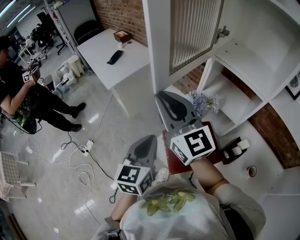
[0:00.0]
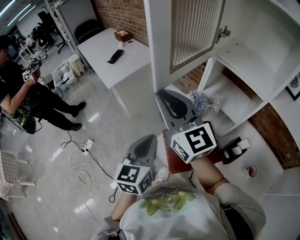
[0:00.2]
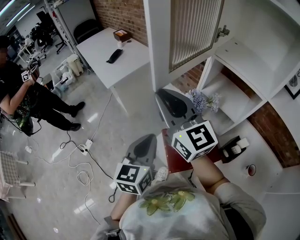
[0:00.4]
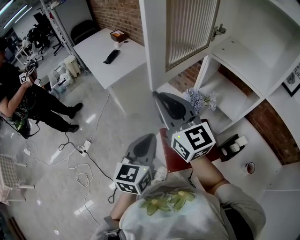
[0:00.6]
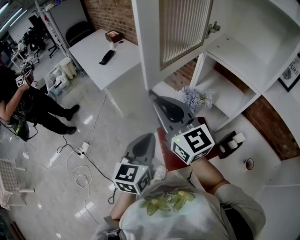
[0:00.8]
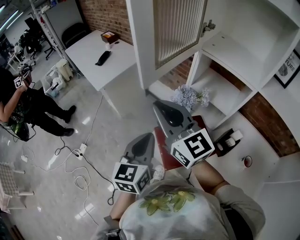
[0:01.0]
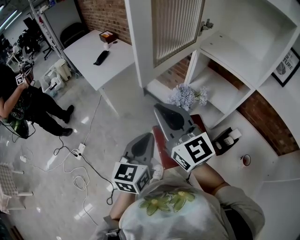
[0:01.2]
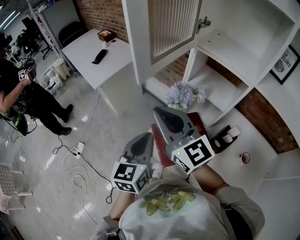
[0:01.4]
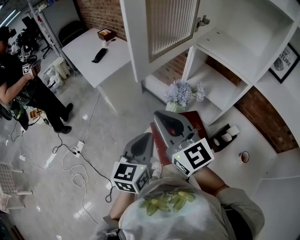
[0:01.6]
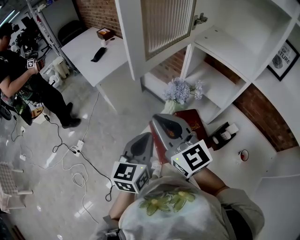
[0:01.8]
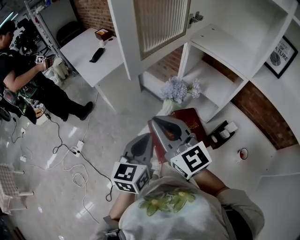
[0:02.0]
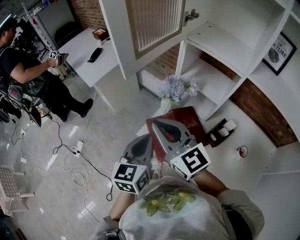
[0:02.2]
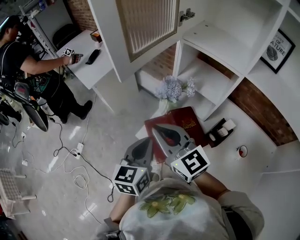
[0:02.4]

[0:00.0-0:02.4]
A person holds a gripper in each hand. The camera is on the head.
0:00.0 to 0:01.2: The right gripper changes place by approximately 5 cm.
0:01.2 to 0:02.4: The left gripper ends up roughly 5 cm from where it was. The right gripper is displaced downward and backward by about 10 cm.

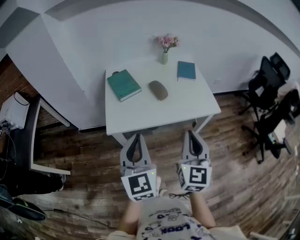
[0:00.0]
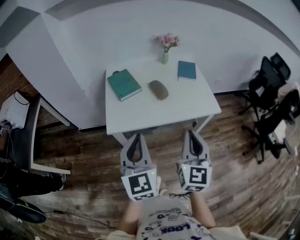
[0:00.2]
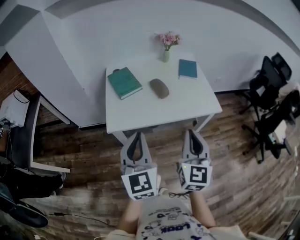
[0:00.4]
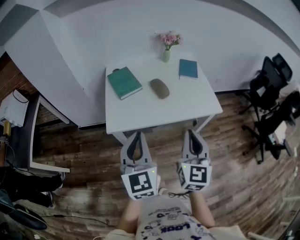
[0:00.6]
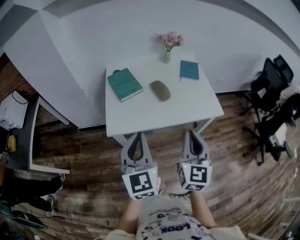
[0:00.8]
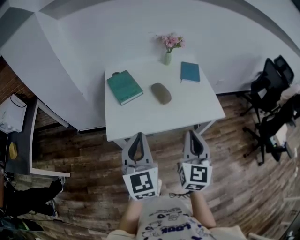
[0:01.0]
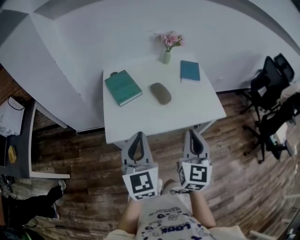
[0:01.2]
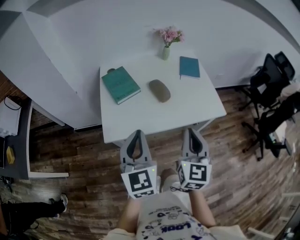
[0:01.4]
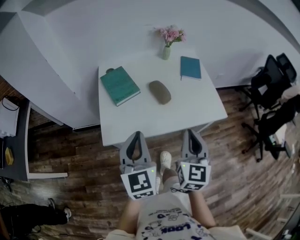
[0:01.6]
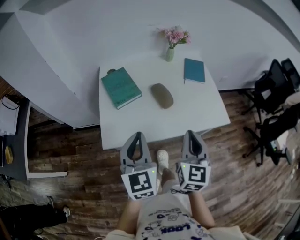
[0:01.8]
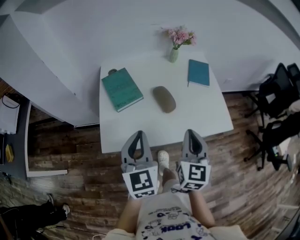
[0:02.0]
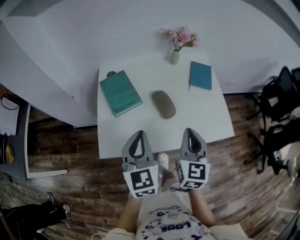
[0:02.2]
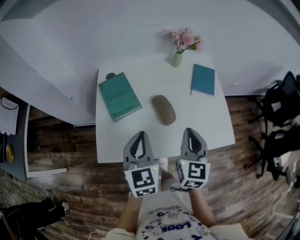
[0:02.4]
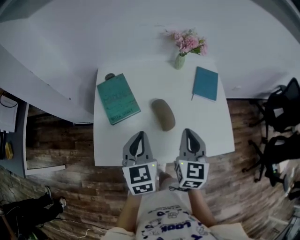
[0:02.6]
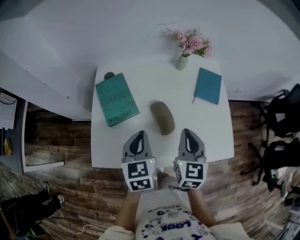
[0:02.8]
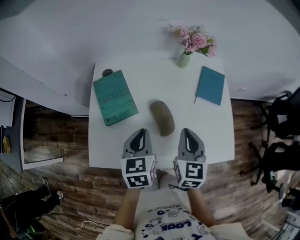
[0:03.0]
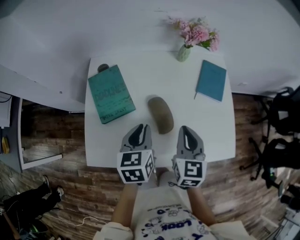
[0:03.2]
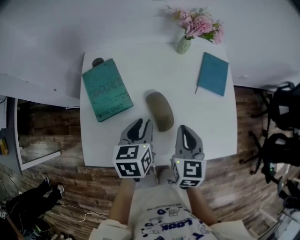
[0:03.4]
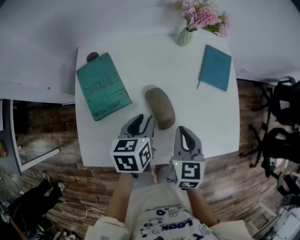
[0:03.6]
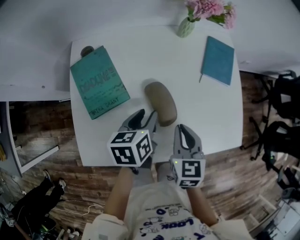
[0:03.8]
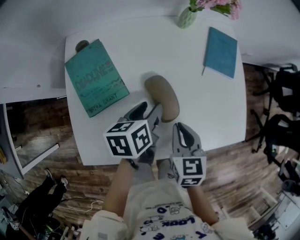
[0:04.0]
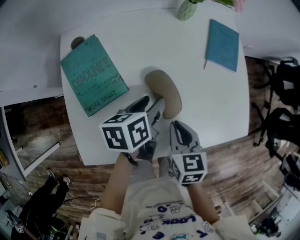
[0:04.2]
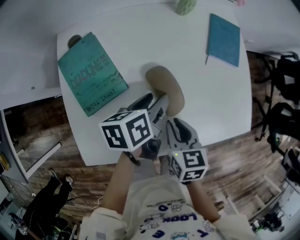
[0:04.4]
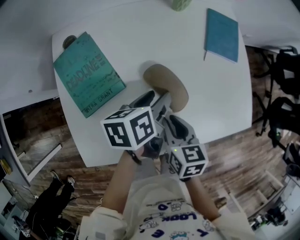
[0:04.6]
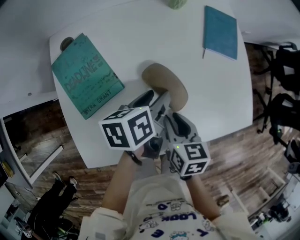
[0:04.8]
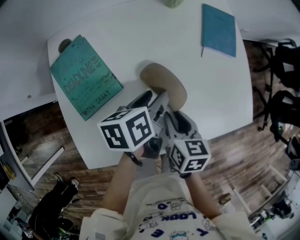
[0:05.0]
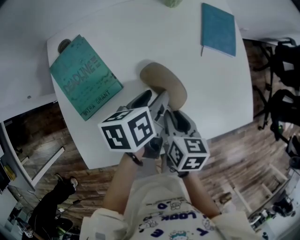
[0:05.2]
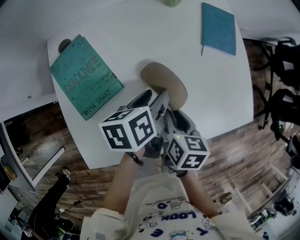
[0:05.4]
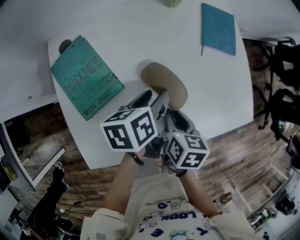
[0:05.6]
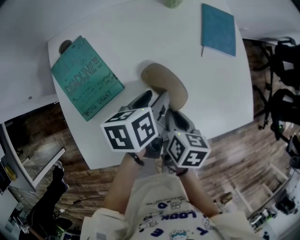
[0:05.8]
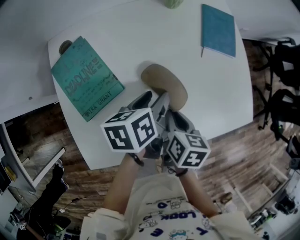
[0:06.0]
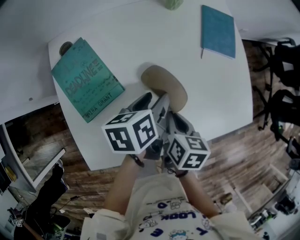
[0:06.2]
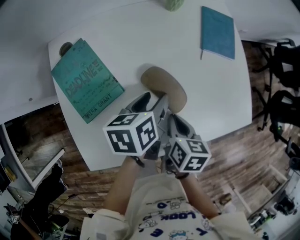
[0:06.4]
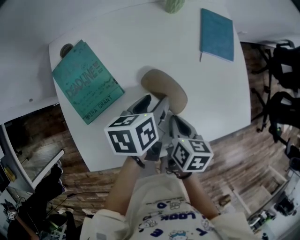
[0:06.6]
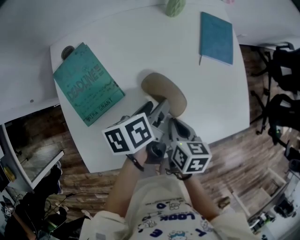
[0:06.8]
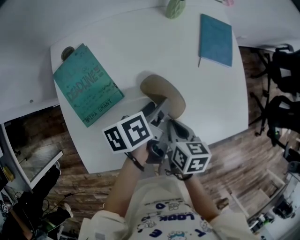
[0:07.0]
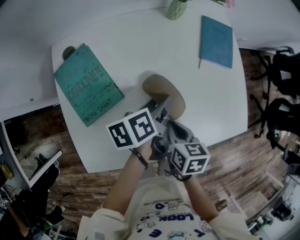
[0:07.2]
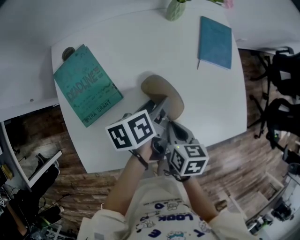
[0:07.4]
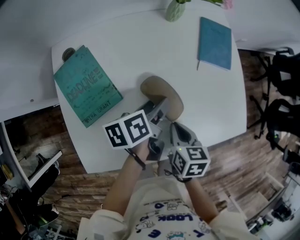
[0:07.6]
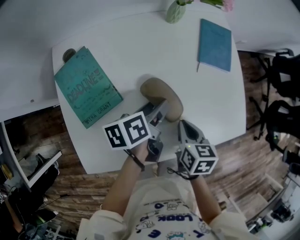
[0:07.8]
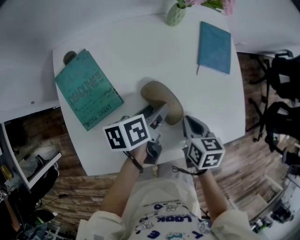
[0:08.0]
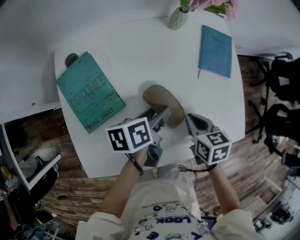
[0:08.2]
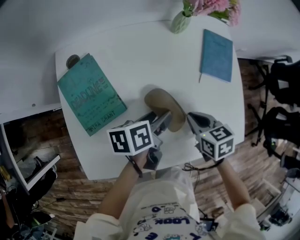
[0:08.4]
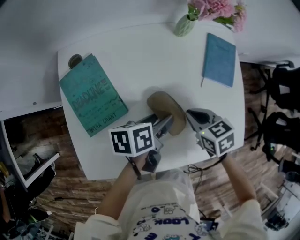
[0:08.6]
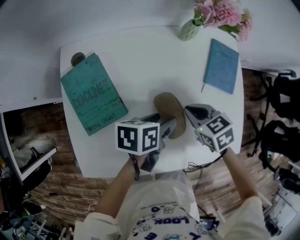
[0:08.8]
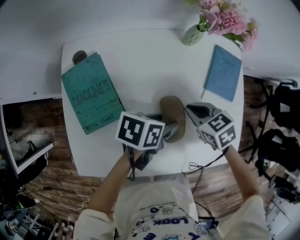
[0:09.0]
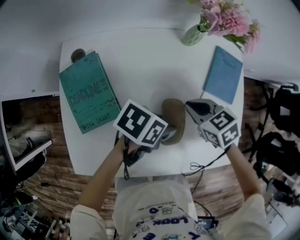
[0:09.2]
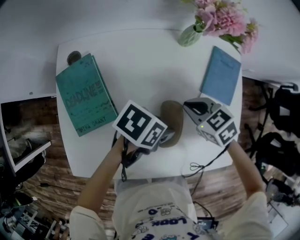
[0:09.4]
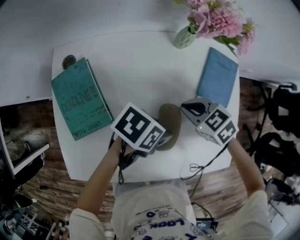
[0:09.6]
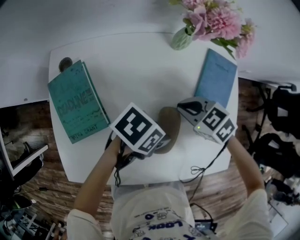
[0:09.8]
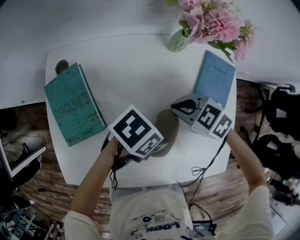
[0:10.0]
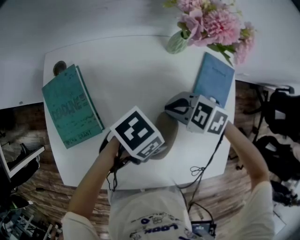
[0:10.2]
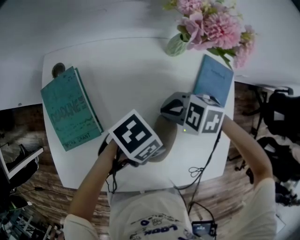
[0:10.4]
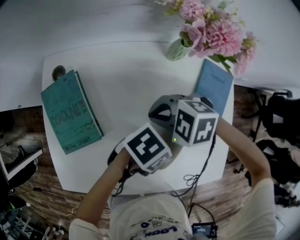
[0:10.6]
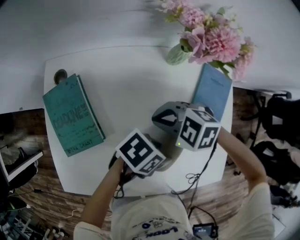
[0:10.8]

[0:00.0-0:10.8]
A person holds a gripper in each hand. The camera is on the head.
0:00.0 to 0:01.6: The grippers both shift forward by about 10 cm.
0:01.6 to 0:03.0: The right gripper shifts some 25 cm forward. Meanwhile the left gripper is displaced forward and downward by approximately 25 cm, and swivels approximately 30 degrees.
0:03.0 to 0:04.6: The right gripper shifts approximately 15 cm downward, and changes its angle by approximately 30 degrees, while the left gripper heads downward, forward and to the right, covering about 15 cm, changes its angle by about 50 degrees, and opens.
0:06.2 to 0:07.8: The right gripper is displaced to the right by approximately 5 cm.
0:07.8 to 0:09.2: The left gripper changes its angle by about 40 degrees. Meanwhile the right gripper shifts by about 15 cm, and rotates around the line of its fingers by some 40 degrees, counterclockwise from behind.
0:09.2 to 0:10.8: The right gripper shifts by some 5 cm, and swivels roughly 40 degrees. Meanwhile the left gripper changes place by about 5 cm.

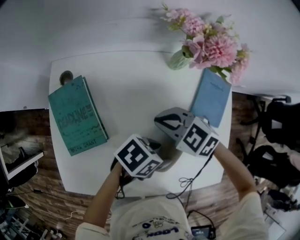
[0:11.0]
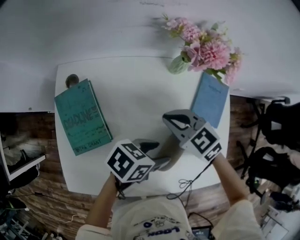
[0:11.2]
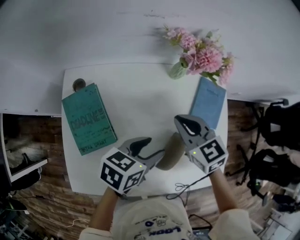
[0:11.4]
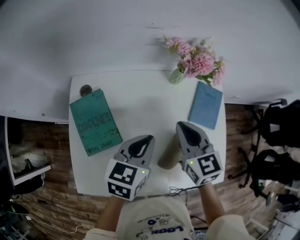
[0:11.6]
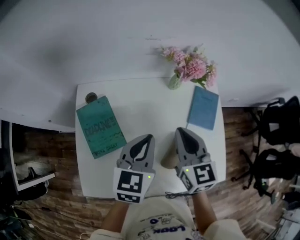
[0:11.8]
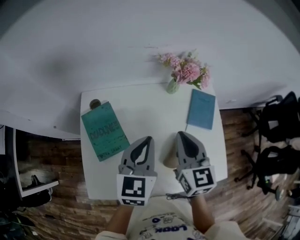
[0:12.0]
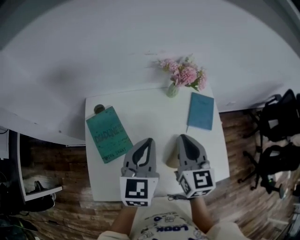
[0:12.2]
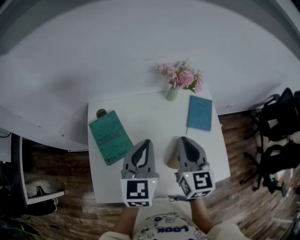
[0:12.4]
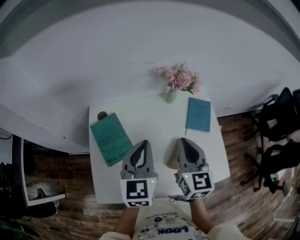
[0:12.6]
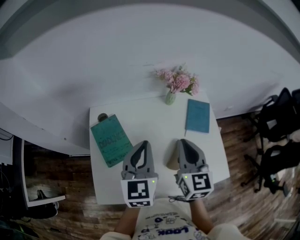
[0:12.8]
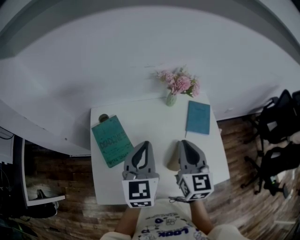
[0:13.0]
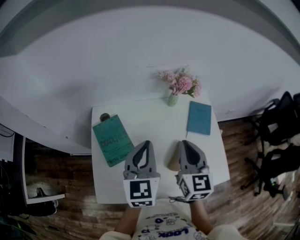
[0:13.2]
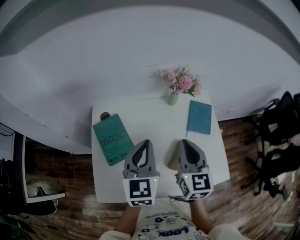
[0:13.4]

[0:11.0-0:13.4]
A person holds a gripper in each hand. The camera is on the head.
0:11.0 to 0:12.2: The grippers both shift upward by approximately 20 cm. The right gripper points its fingers some 30 degrees further upward. The left gripper turns by some 80 degrees, and closes.
0:12.2 to 0:13.4: The grippers move only a little.

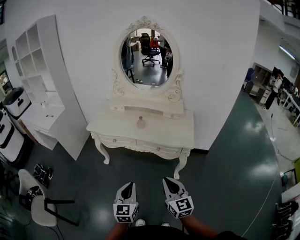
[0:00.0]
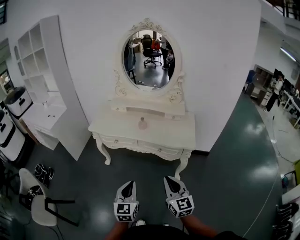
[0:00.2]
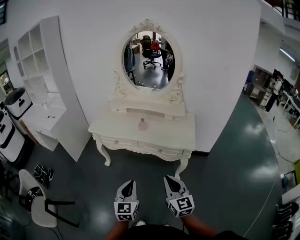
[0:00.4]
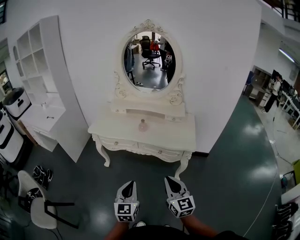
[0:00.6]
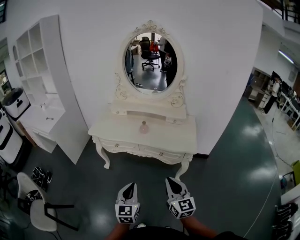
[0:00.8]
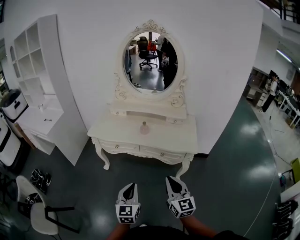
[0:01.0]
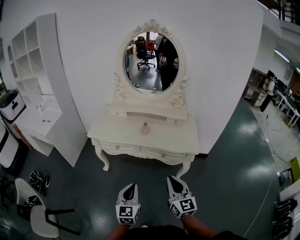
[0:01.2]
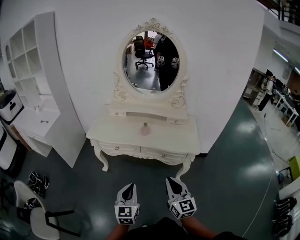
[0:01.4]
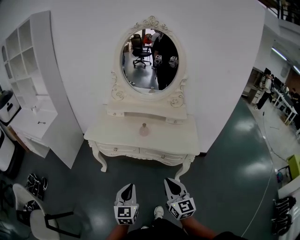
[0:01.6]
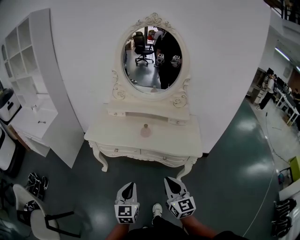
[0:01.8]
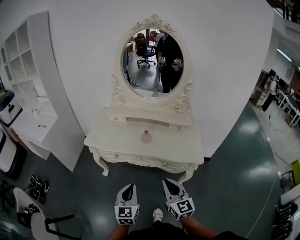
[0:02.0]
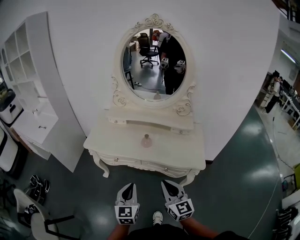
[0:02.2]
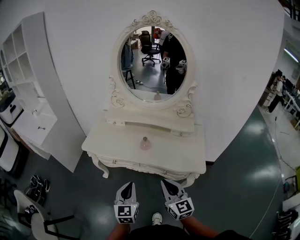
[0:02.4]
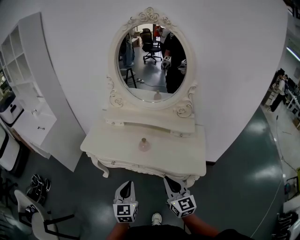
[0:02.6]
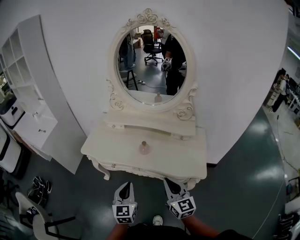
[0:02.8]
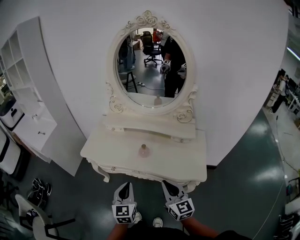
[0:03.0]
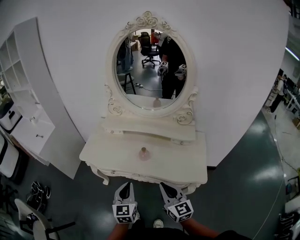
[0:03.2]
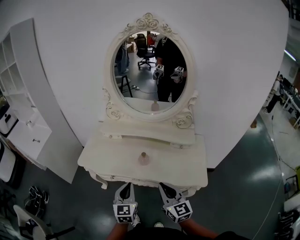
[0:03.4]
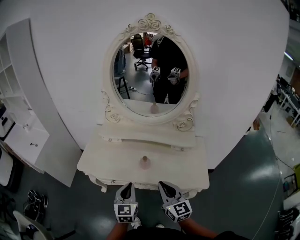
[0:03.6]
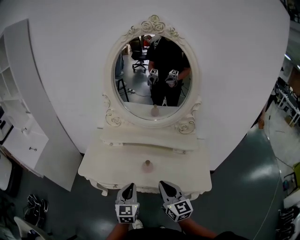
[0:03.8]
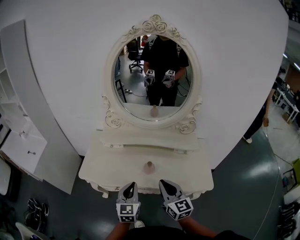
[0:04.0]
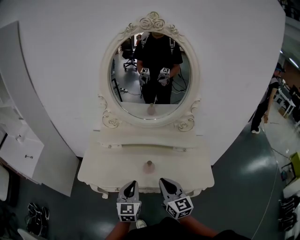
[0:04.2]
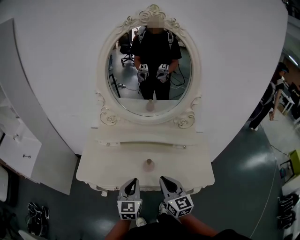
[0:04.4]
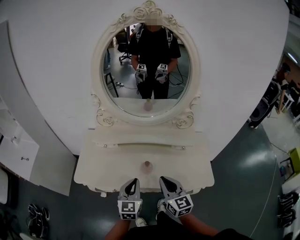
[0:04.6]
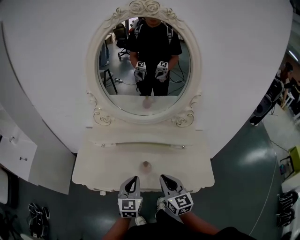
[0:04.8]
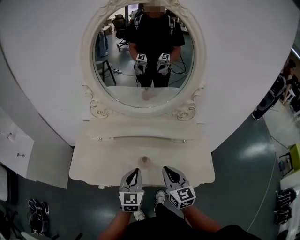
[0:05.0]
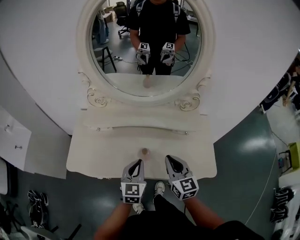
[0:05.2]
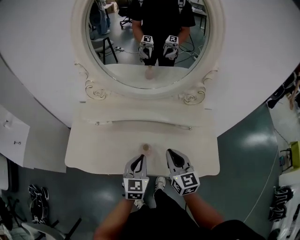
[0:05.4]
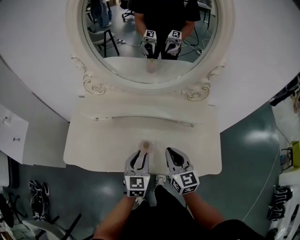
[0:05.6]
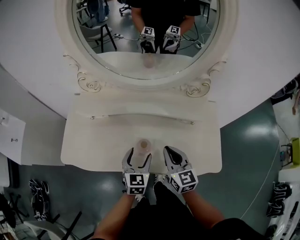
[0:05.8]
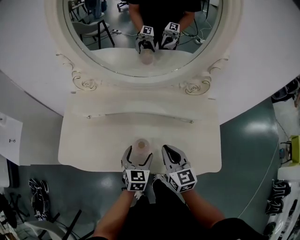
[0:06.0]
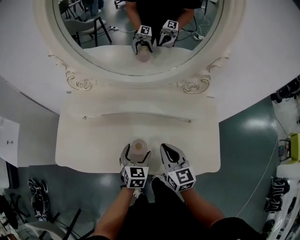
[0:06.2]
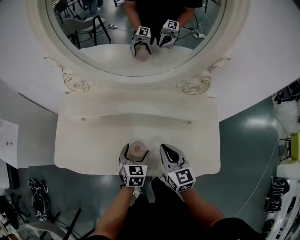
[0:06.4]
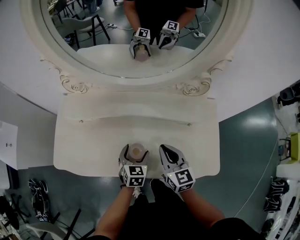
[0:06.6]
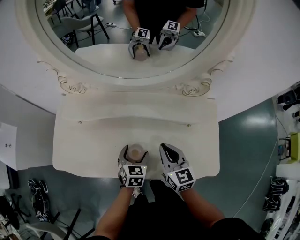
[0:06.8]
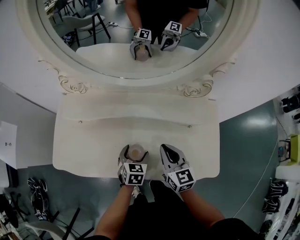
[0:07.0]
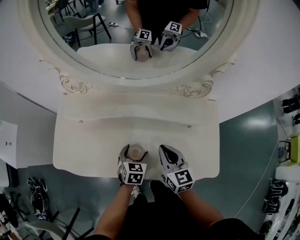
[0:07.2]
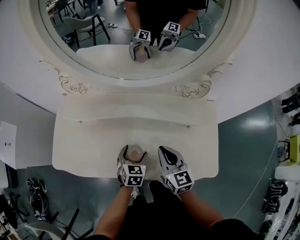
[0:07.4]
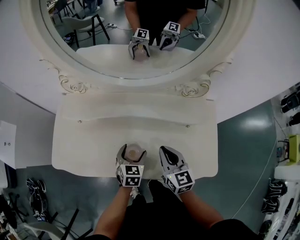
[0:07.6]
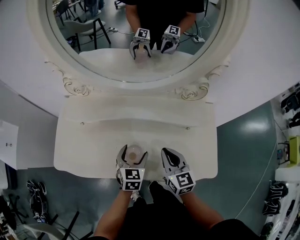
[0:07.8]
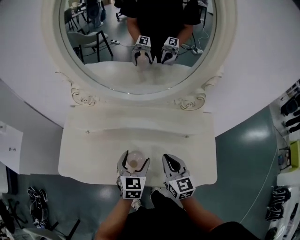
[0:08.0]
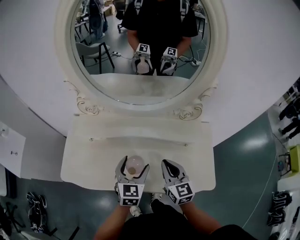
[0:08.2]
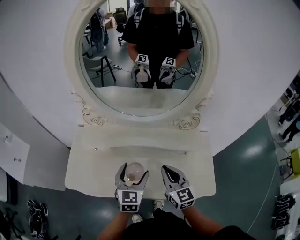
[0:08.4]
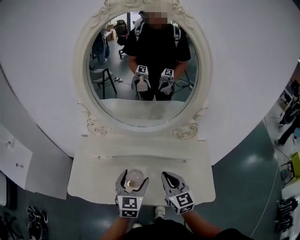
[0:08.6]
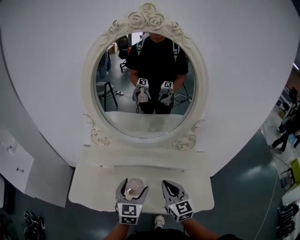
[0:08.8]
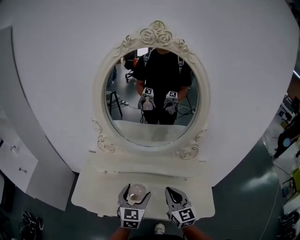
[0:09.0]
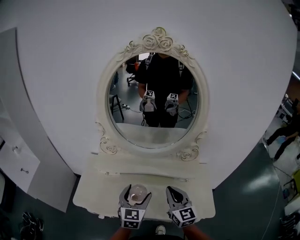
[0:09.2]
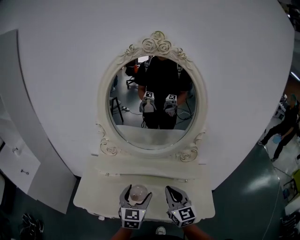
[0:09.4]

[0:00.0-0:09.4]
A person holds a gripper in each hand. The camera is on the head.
0:00.0 to 0:01.6: Both grippers travel together forward and to the left, roughly 10 cm.
0:01.6 to 0:03.2: The grippers both shift forward by about 20 cm.
0:03.2 to 0:04.8: Both grippers move forward, some 15 cm.
0:04.8 to 0:06.2: The right gripper travels forward and downward by some 15 cm. The left gripper is displaced downward and forward by some 20 cm, turns by about 20 degrees, and opens its fingers.
0:06.2 to 0:07.8: The grippers move only a little.
0:07.8 to 0:09.4: The two grippers go some 20 cm upward. The right gripper changes its angle by roughly 20 degrees; the left gripper rotates some 20 degrees.
